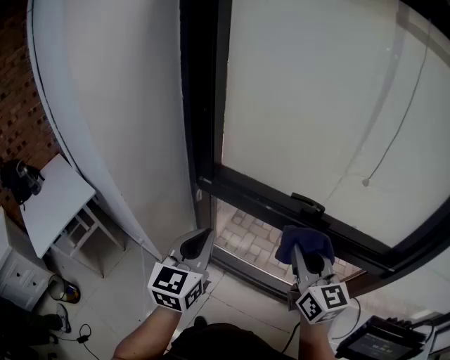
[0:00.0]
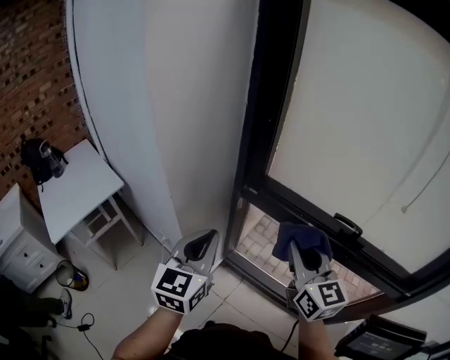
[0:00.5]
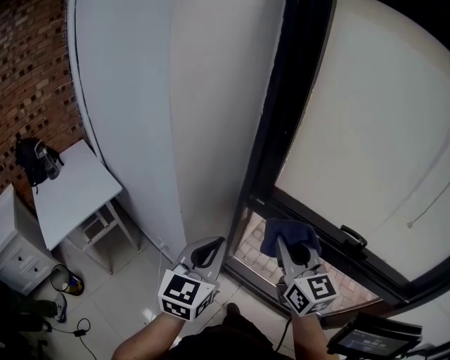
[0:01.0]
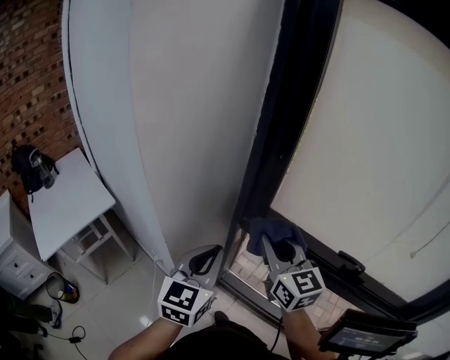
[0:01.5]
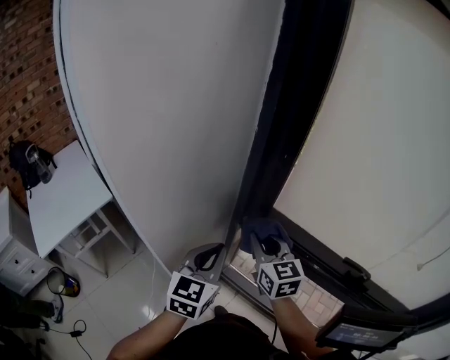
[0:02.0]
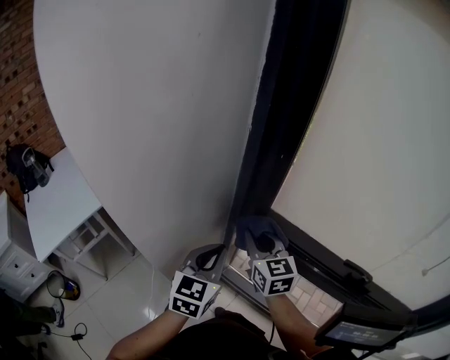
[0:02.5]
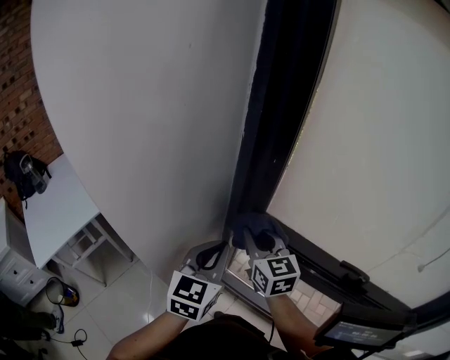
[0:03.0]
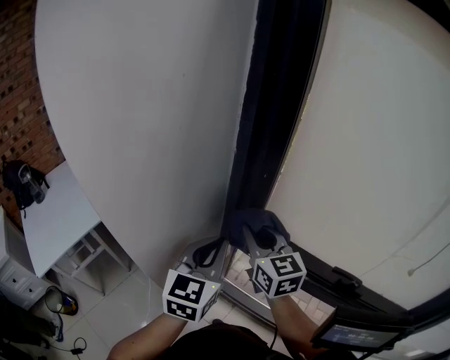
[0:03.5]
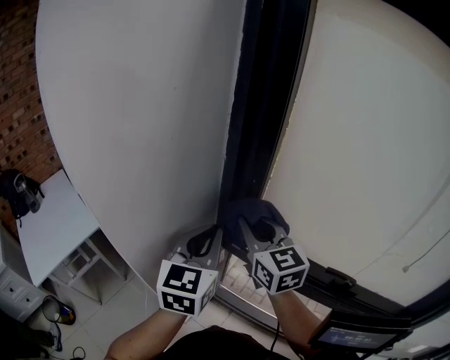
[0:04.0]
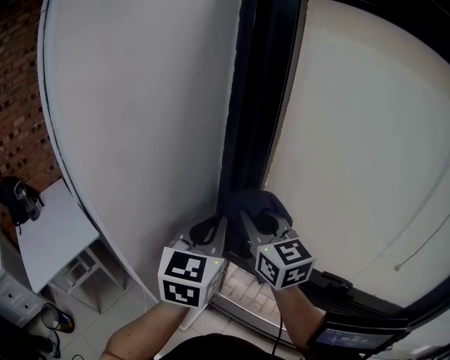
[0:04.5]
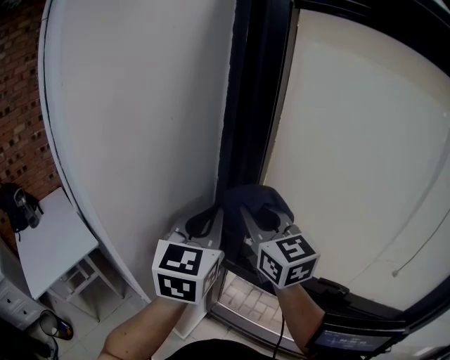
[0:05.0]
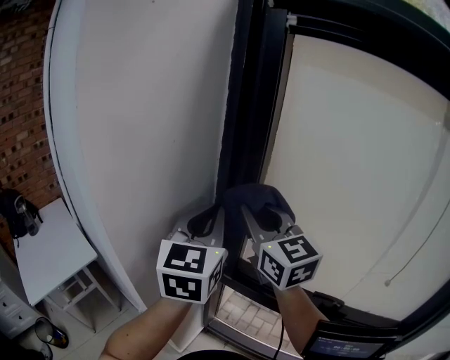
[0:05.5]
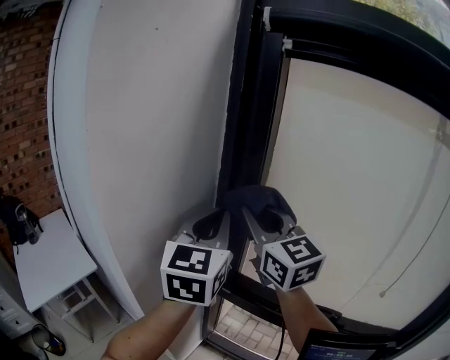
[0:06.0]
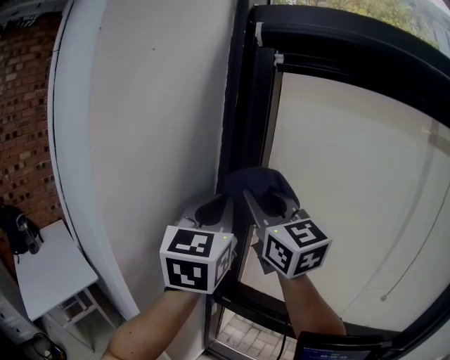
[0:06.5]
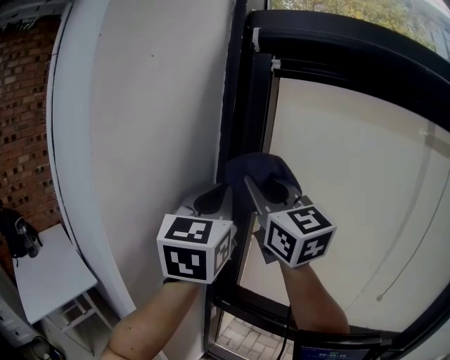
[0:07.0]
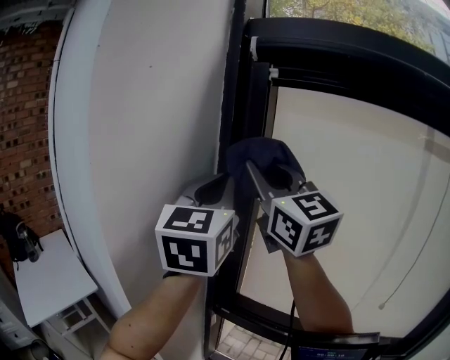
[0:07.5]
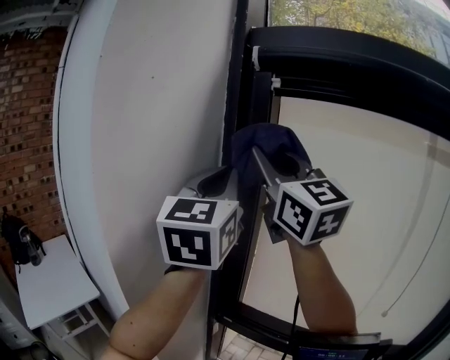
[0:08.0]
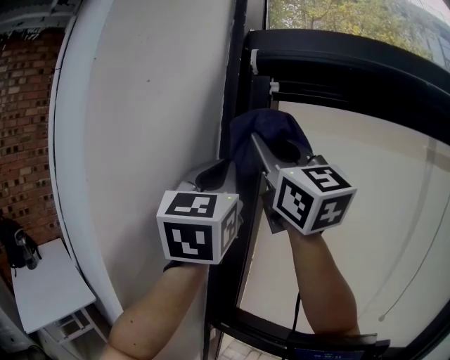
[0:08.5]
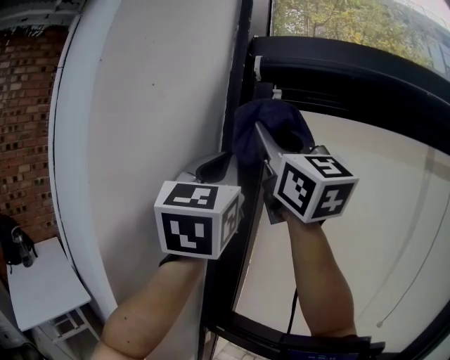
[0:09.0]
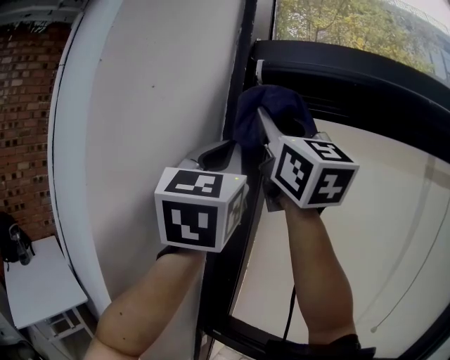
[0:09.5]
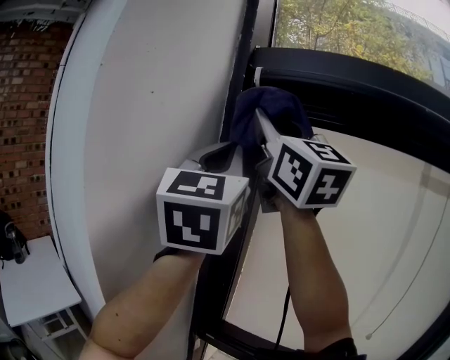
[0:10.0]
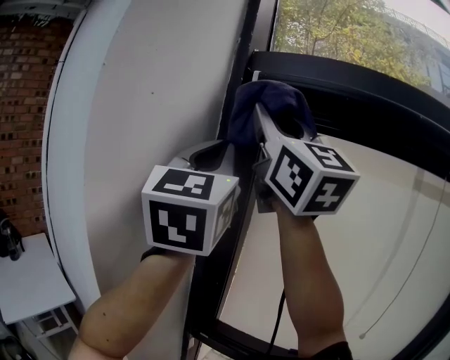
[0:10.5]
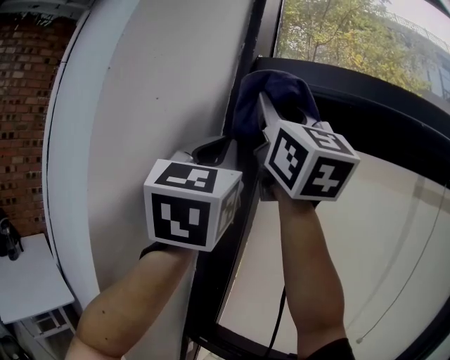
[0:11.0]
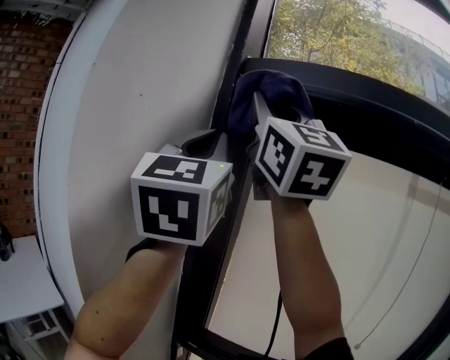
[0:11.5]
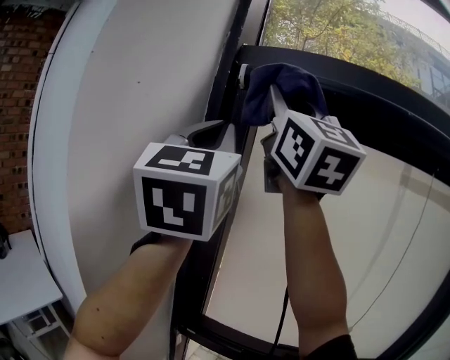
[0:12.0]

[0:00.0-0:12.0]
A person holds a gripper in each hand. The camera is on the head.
0.0 to 2.0 s: The right gripper goes approximately 35 cm forward and to the left; the left gripper heads forward and to the left, covering about 20 cm.
2.0 to 4.0 s: Both grippers travel together upward, about 15 cm.
4.0 to 6.0 s: The grippers both shift upward by about 20 cm.
6.0 to 8.0 s: Both grippers travel together upward, approximately 20 cm.
8.0 to 10.0 s: Both grippers travel together upward, roughly 10 cm.
10.0 to 12.0 s: The right gripper ends up some 5 cm from where it was.

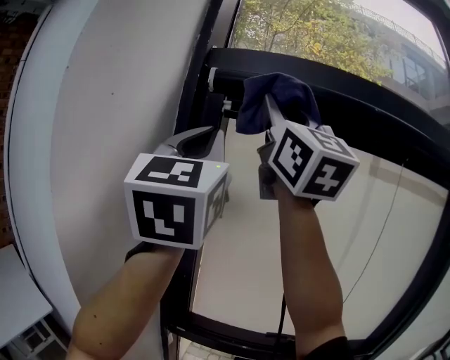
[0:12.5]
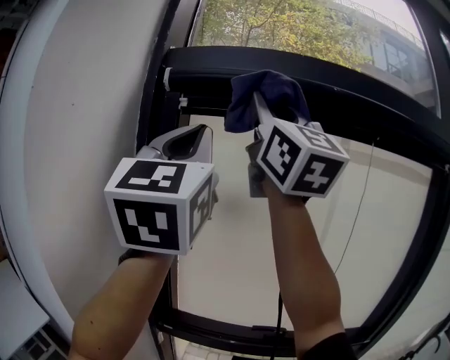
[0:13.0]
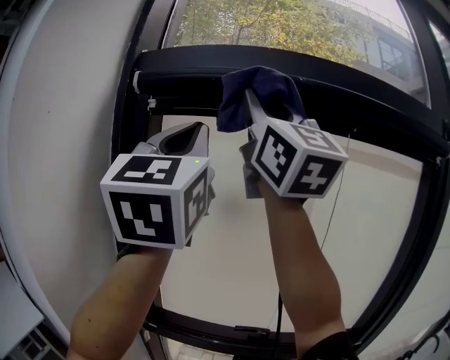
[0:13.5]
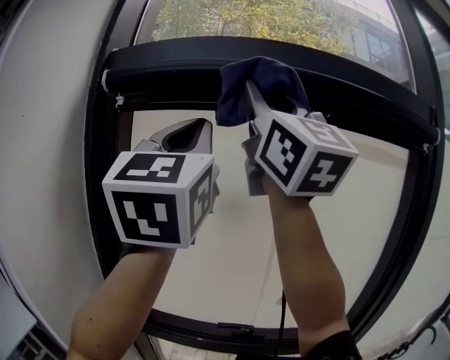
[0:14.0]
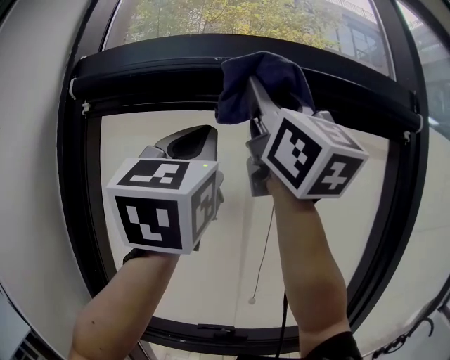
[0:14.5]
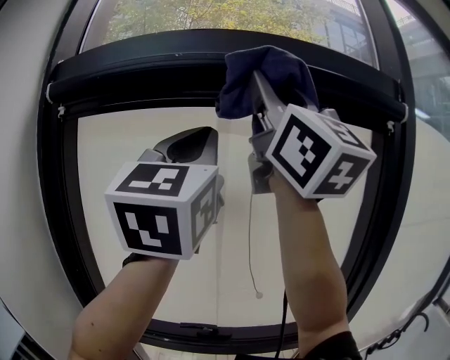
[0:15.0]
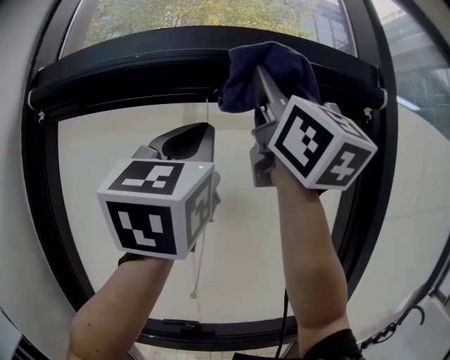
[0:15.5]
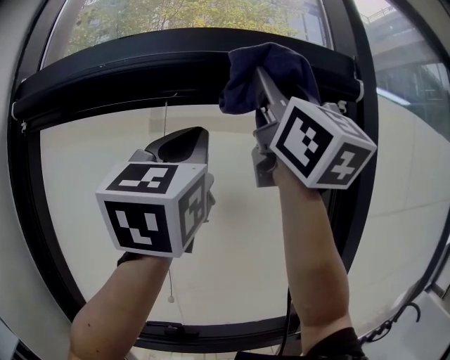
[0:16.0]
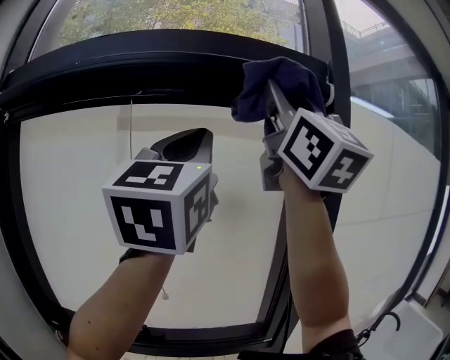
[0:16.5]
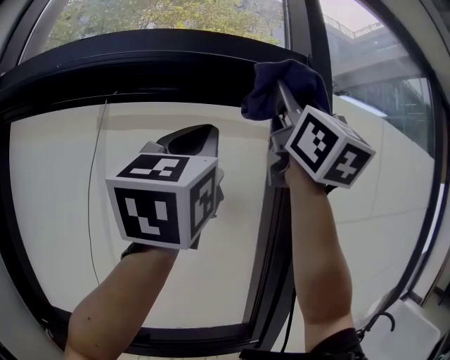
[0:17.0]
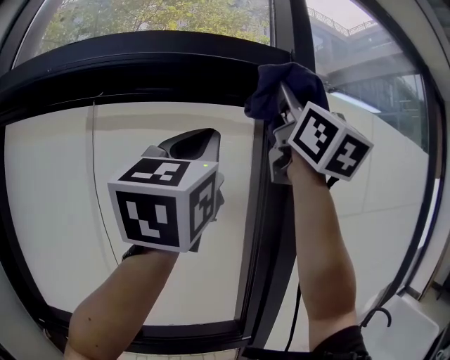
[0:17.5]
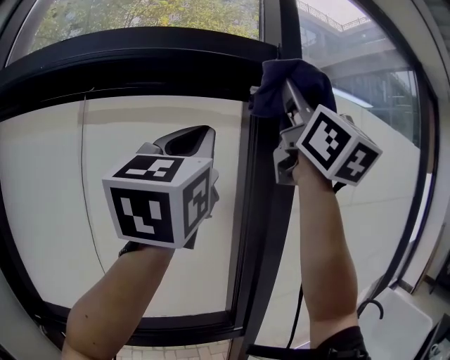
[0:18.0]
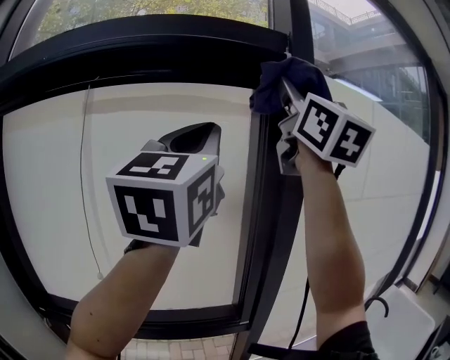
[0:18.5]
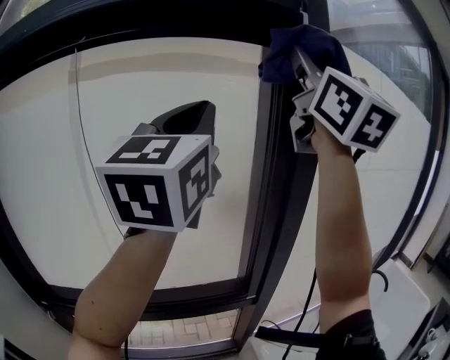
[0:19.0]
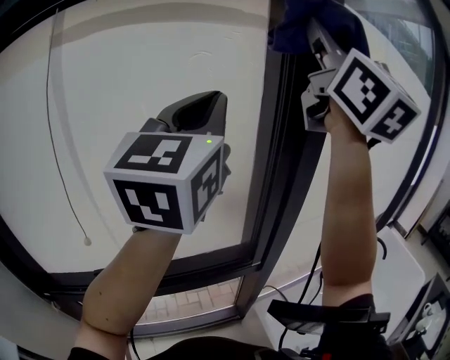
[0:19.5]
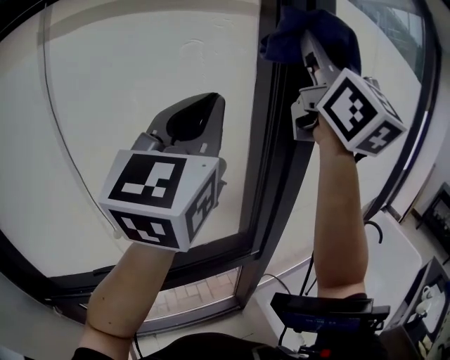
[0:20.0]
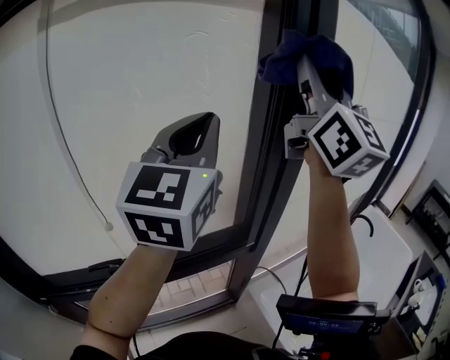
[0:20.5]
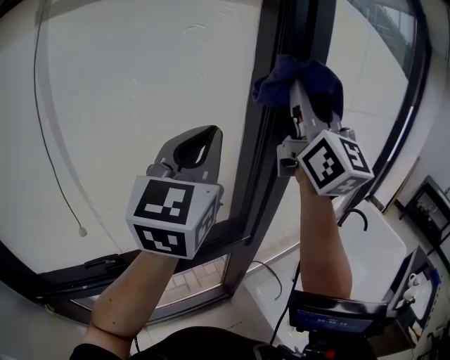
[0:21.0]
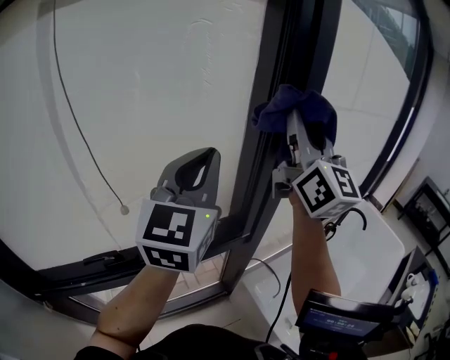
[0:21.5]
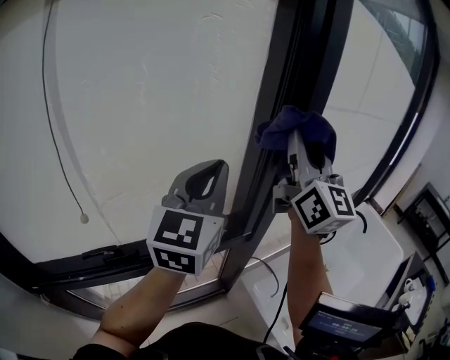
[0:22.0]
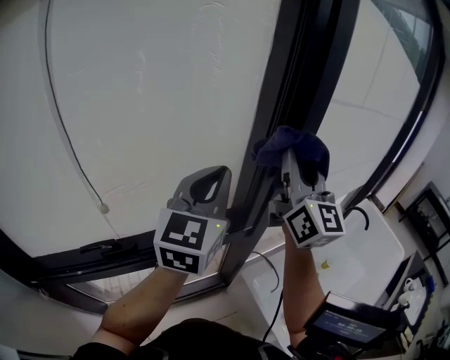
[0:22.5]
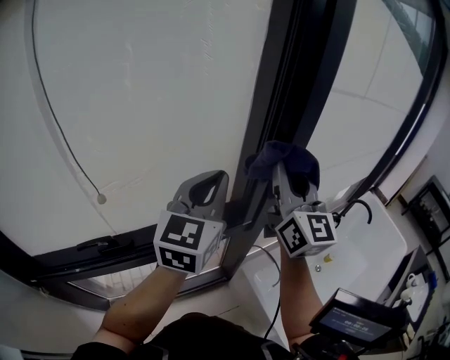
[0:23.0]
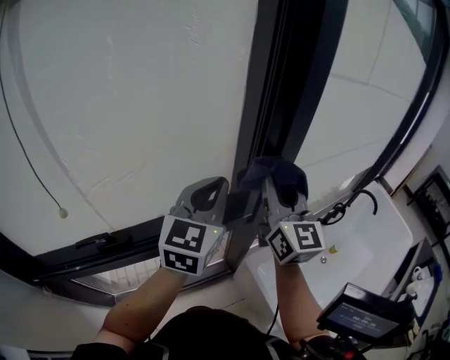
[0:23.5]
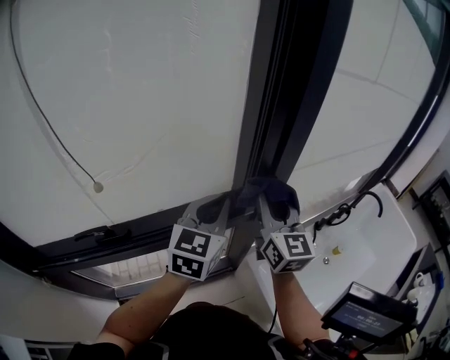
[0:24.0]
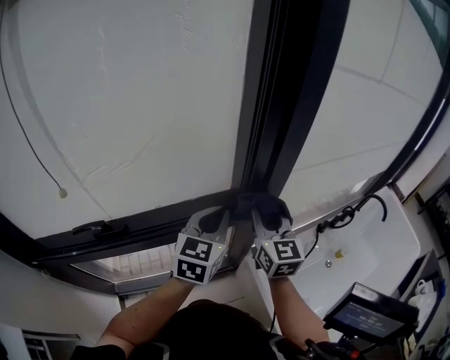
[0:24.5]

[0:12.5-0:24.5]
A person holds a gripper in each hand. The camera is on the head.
12.5 to 14.5 s: The two grippers go about 25 cm to the right.
14.5 to 16.5 s: The grippers both shift to the right by some 30 cm.
16.5 to 18.5 s: The two grippers go approximately 10 cm to the right.
18.5 to 20.5 s: Both grippers move downward, about 15 cm.
20.5 to 22.5 s: Both grippers travel together downward, approximately 20 cm.
22.5 to 24.5 s: The two grippers go about 25 cm downward. The right gripper angles its fingers downward, by approximately 30 degrees. The left gripper rotates approximately 20 degrees.

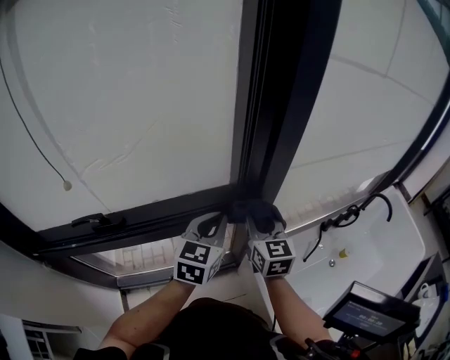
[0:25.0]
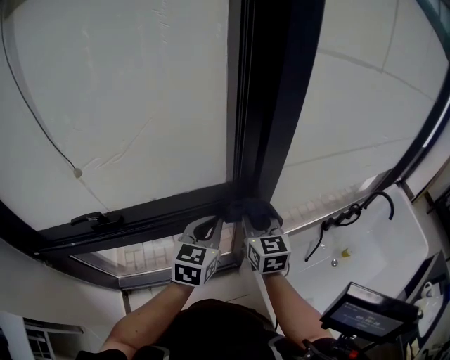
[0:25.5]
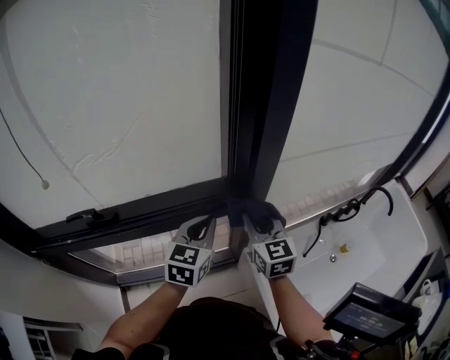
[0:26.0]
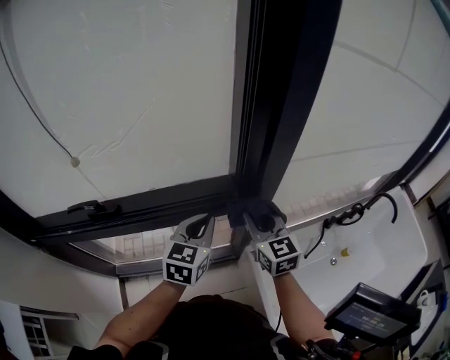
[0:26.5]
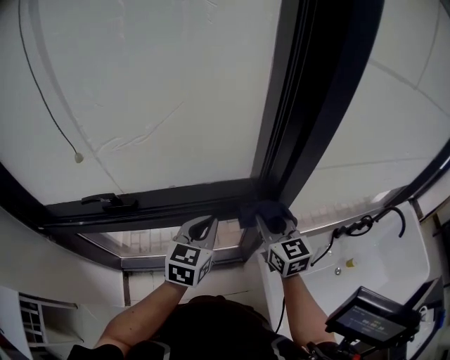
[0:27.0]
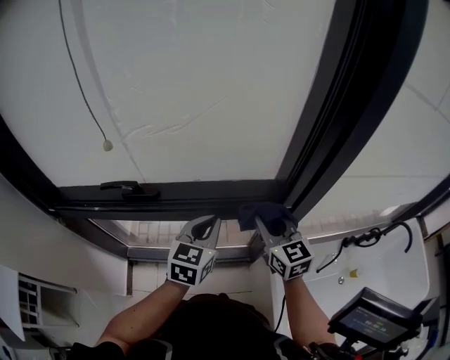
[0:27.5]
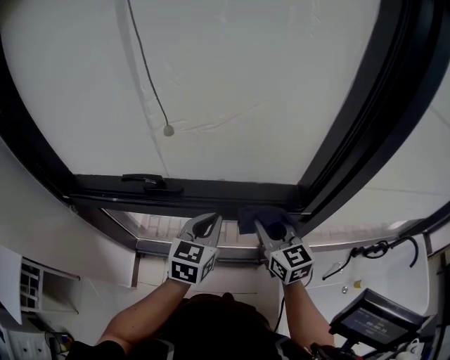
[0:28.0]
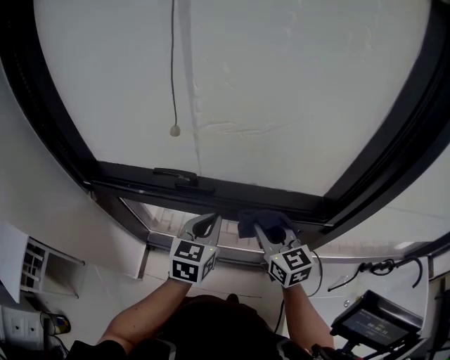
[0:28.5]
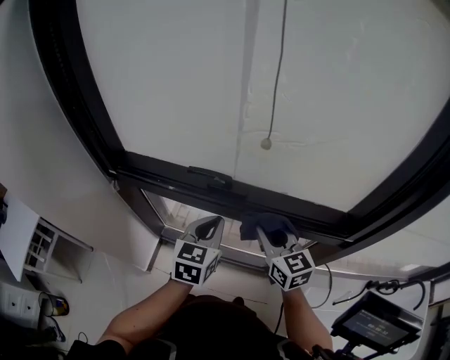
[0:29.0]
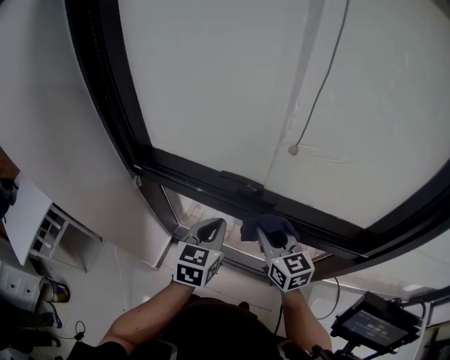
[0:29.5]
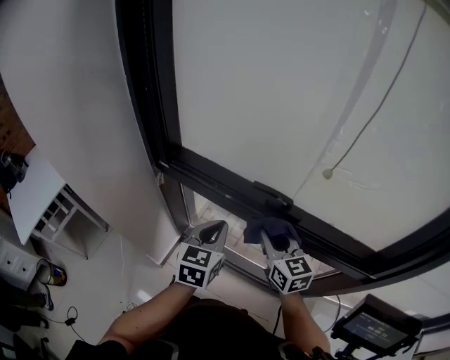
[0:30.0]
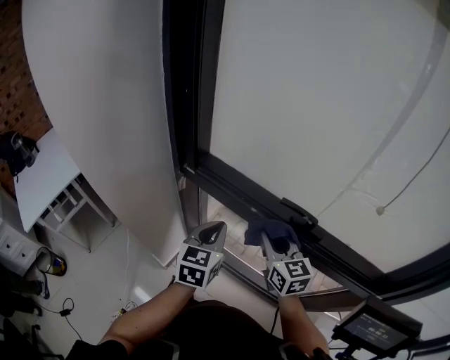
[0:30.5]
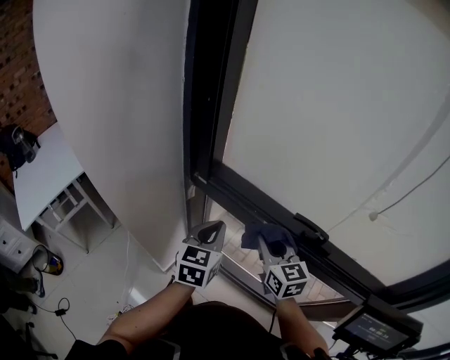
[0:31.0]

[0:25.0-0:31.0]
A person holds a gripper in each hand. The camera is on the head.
25.0 to 27.0 s: The left gripper is displaced to the left by approximately 5 cm.
27.0 to 29.0 s: The left gripper moves approximately 25 cm, and turns by roughly 30 degrees. The right gripper changes place by approximately 30 cm, and turns by roughly 30 degrees.
29.0 to 31.0 s: The right gripper is displaced to the left and forward by approximately 25 cm, while the left gripper heads to the left, covering approximately 25 cm, and changes its angle by some 20 degrees.
